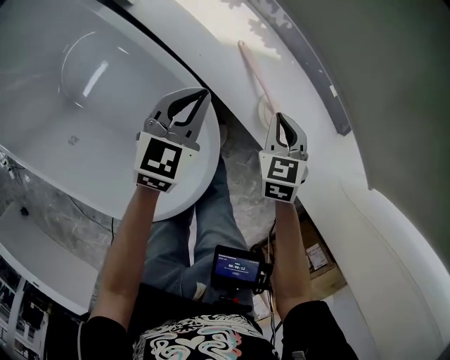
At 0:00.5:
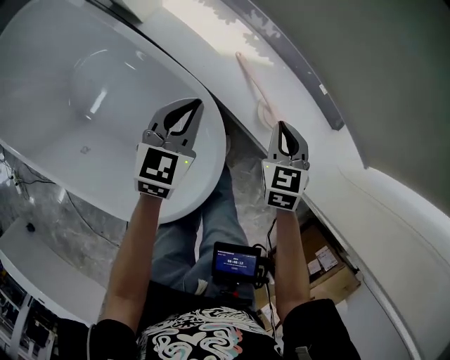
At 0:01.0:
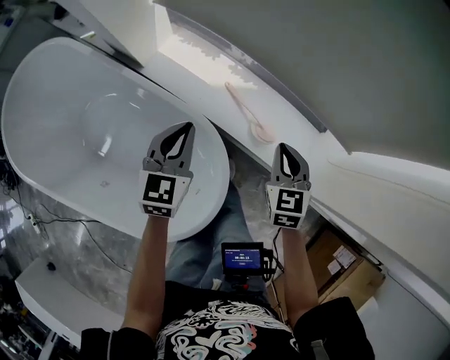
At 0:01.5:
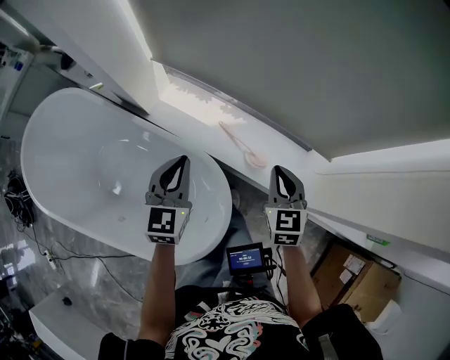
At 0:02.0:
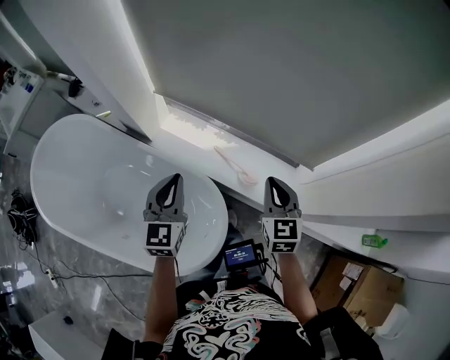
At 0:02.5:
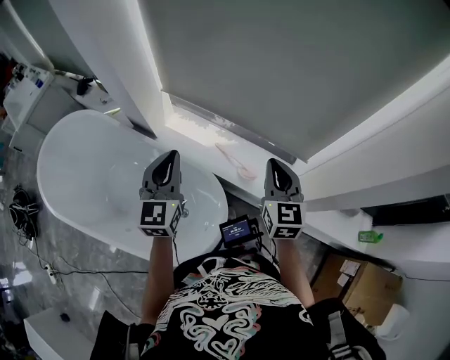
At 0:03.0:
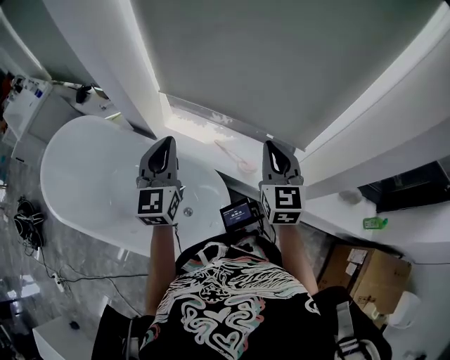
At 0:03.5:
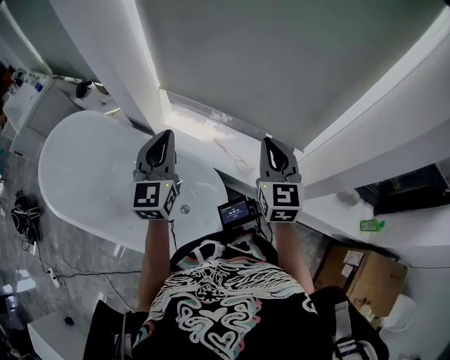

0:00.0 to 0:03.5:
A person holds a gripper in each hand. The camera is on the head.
0:00.0 to 0:02.0: Both grippers move upward, some 35 cm. The left gripper swivels roughly 20 degrees. The right gripper swivels approximately 30 degrees.
0:02.0 to 0:03.5: Both grippers move upward, approximately 10 cm.

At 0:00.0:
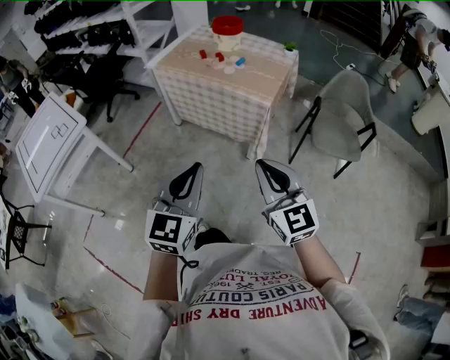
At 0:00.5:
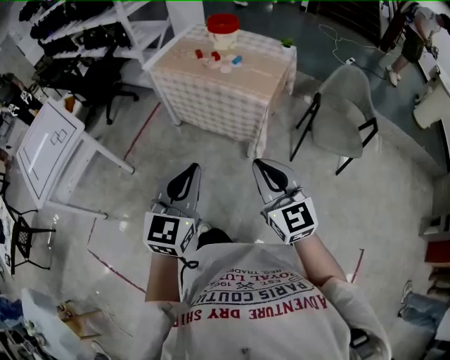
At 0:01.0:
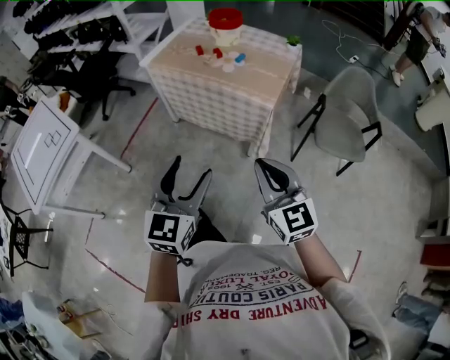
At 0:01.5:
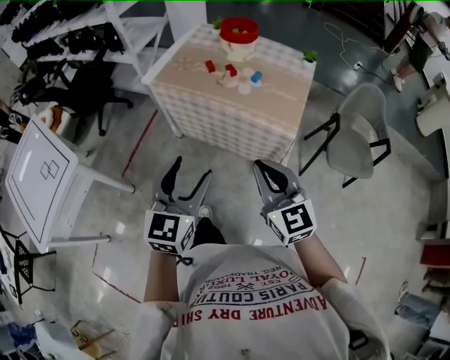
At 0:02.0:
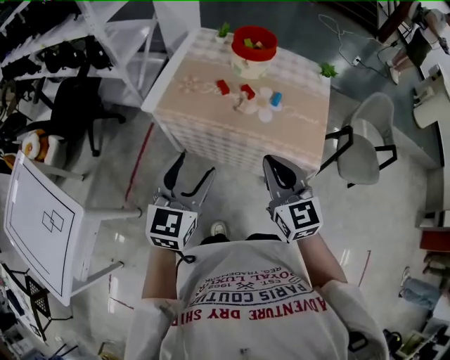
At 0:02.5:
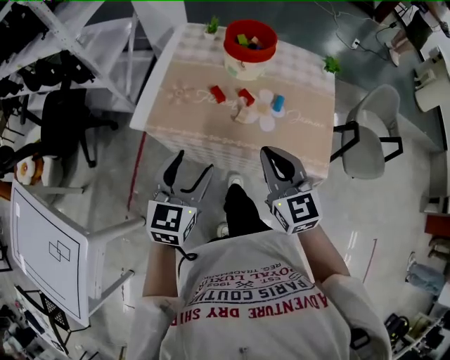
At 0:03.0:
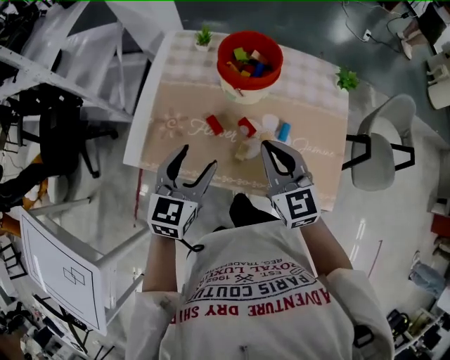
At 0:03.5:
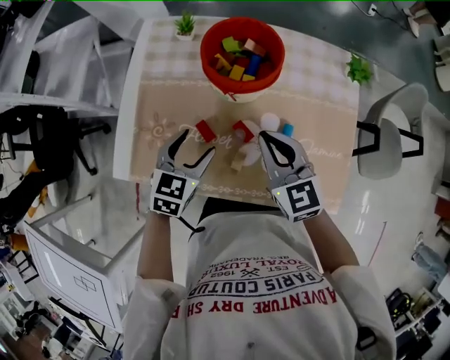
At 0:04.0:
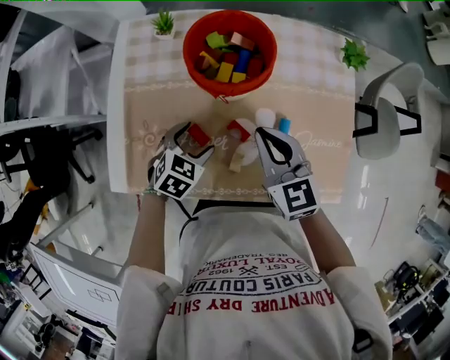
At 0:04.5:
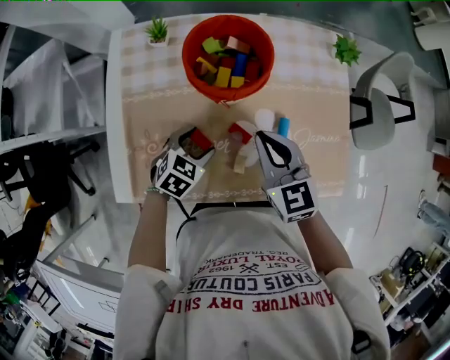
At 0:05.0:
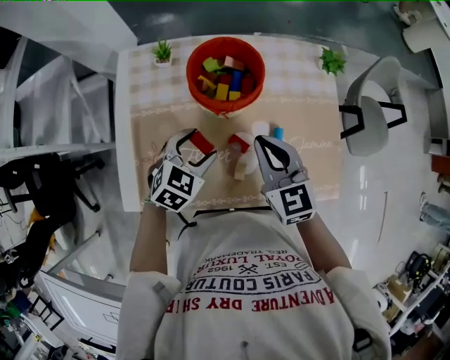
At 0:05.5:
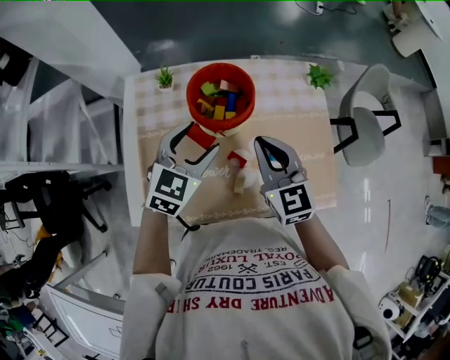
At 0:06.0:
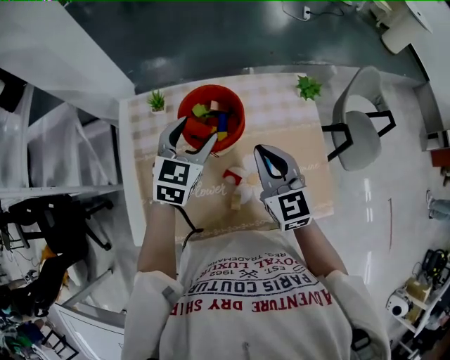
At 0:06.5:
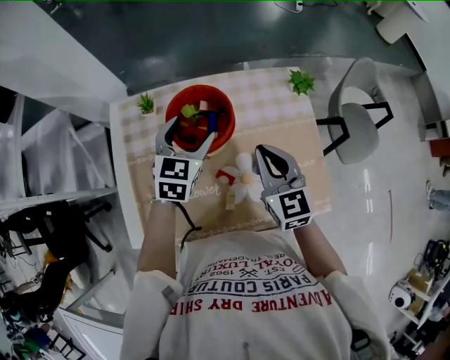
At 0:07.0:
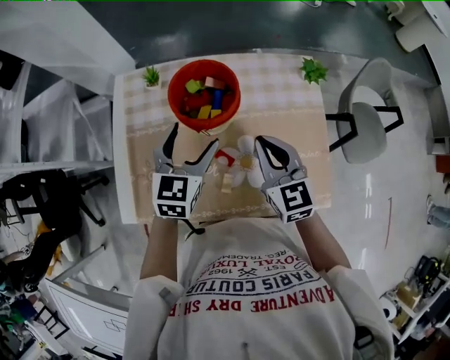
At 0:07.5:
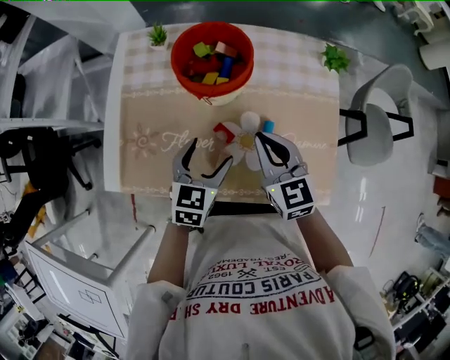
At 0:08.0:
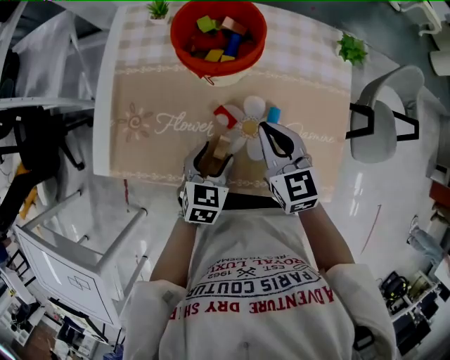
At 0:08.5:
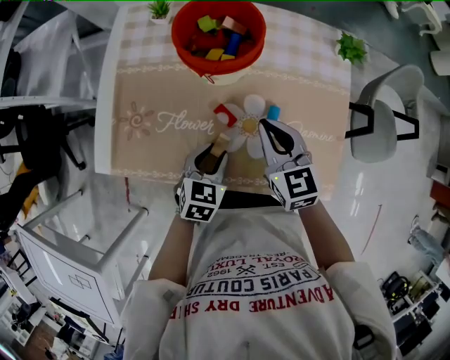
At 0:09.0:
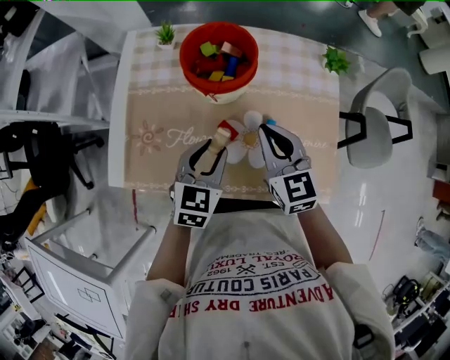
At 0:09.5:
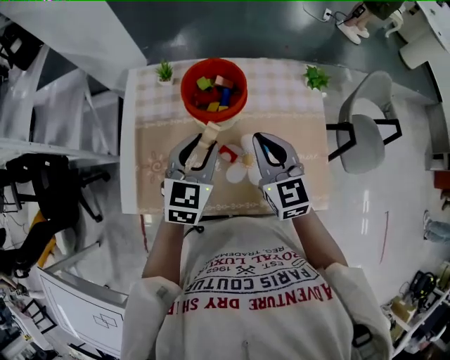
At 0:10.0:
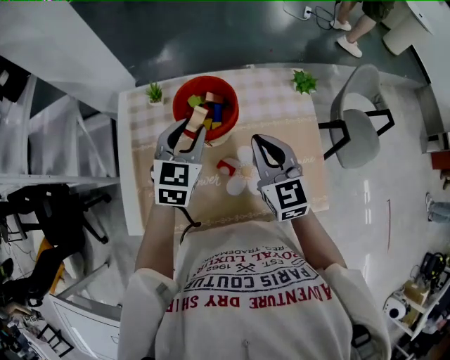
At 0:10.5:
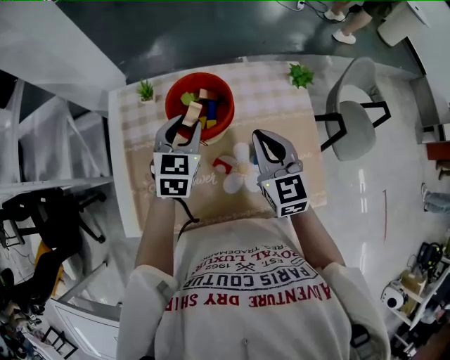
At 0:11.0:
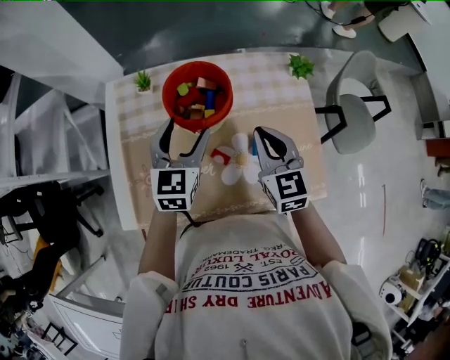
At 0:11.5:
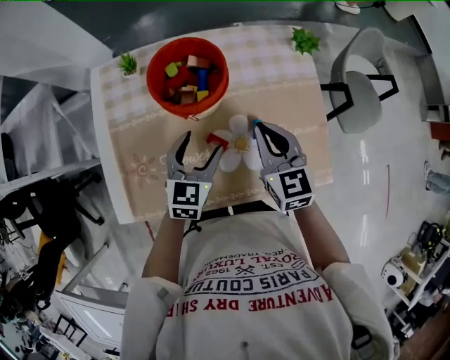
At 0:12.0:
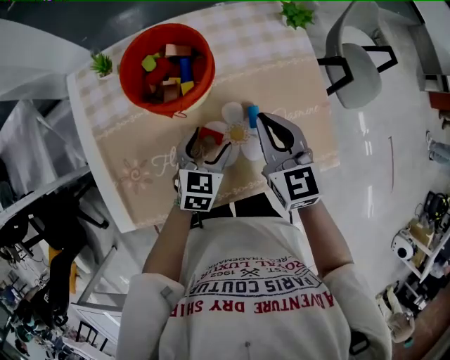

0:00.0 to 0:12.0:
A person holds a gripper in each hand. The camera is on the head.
0:00.0 to 0:02.0: The pair of grippers is taken forward, about 50 cm. The left gripper opens up.
0:02.0 to 0:04.0: The right gripper travels forward by roughly 35 cm, while the left gripper goes roughly 50 cm forward and downward, and points its fingers about 40 degrees further downward.
0:04.0 to 0:06.0: The left gripper is displaced upward and forward by approximately 25 cm, and turns by some 30 degrees, while the right gripper travels upward and forward by some 10 cm.
0:06.0 to 0:08.0: The left gripper travels backward and downward by approximately 30 cm, and turns by some 30 degrees; the right gripper shifts some 15 cm downward and backward.
0:08.0 to 0:10.0: The right gripper travels upward and forward by roughly 15 cm, while the left gripper heads upward and forward, covering approximately 30 cm, and changes its angle by some 30 degrees.
0:10.0 to 0:12.0: The left gripper travels downward, backward and to the right by about 25 cm, swivels roughly 20 degrees, and opens up, while the right gripper moves downward, approximately 10 cm.

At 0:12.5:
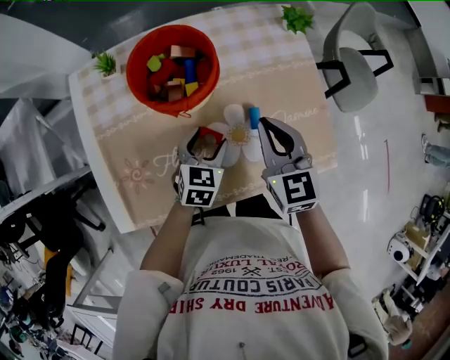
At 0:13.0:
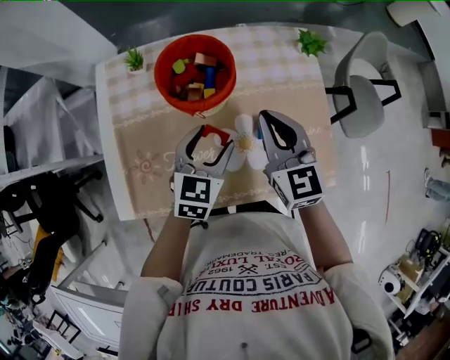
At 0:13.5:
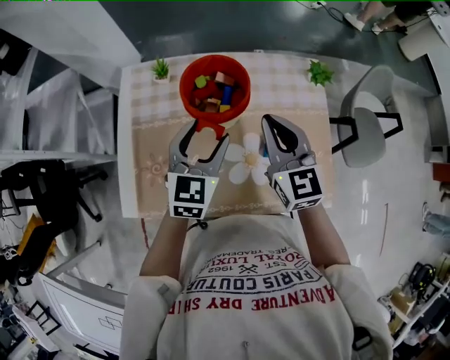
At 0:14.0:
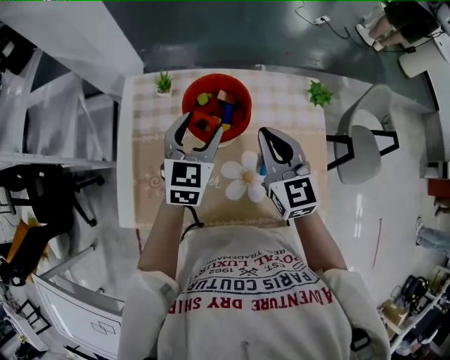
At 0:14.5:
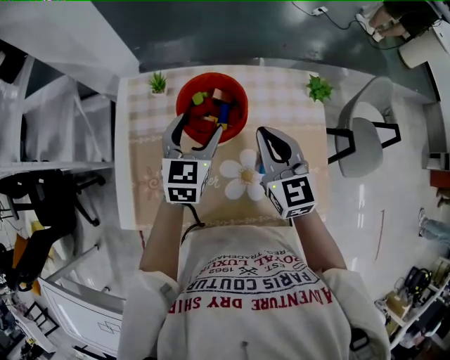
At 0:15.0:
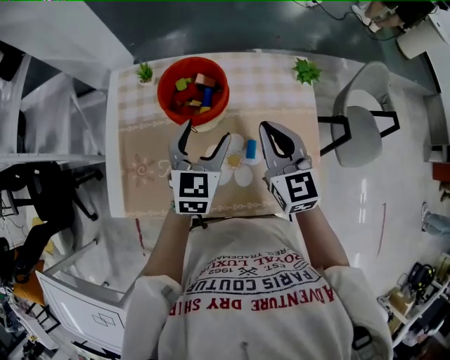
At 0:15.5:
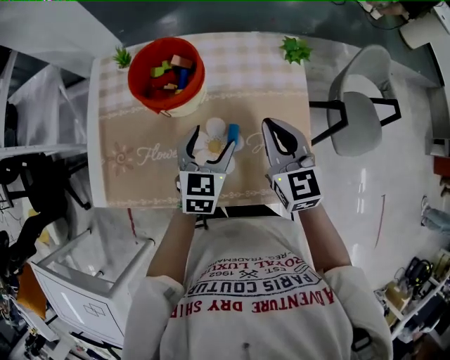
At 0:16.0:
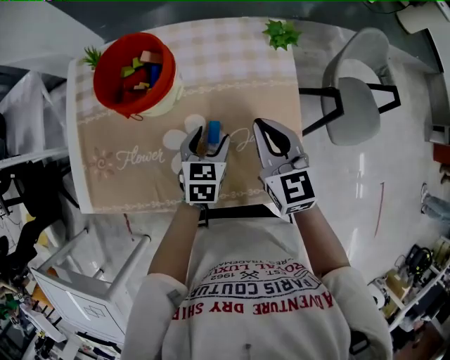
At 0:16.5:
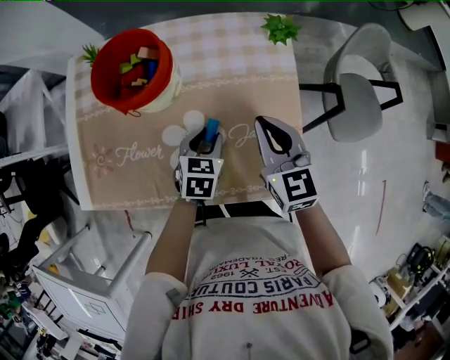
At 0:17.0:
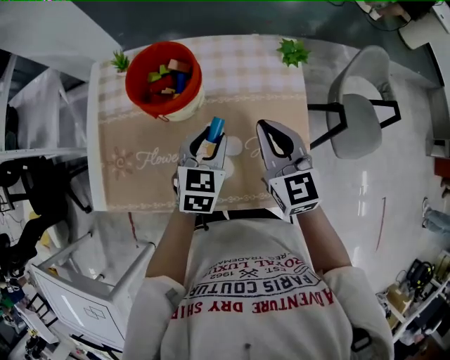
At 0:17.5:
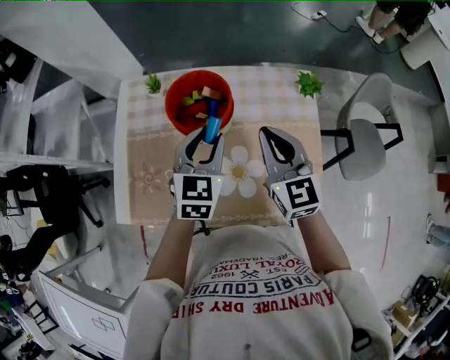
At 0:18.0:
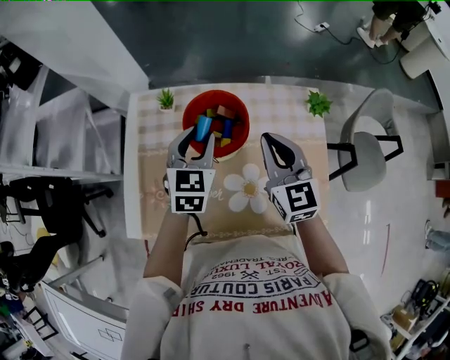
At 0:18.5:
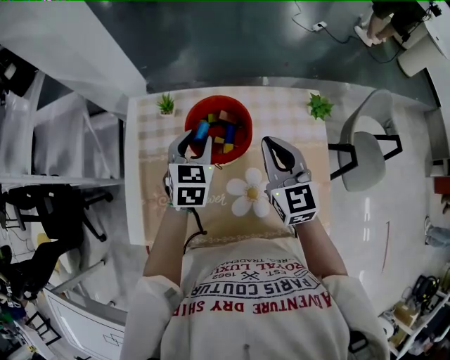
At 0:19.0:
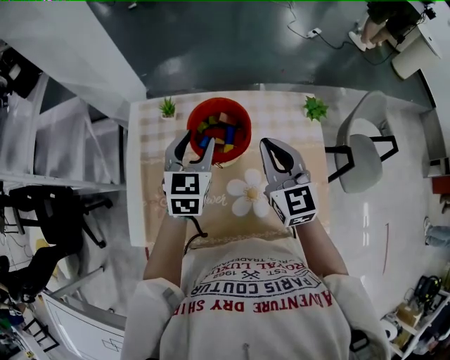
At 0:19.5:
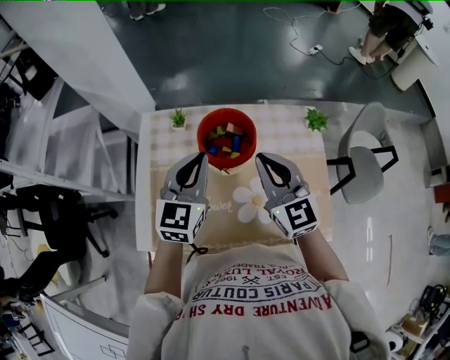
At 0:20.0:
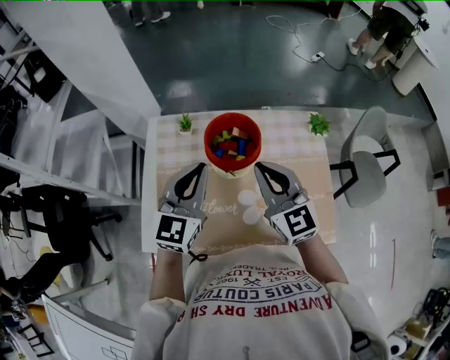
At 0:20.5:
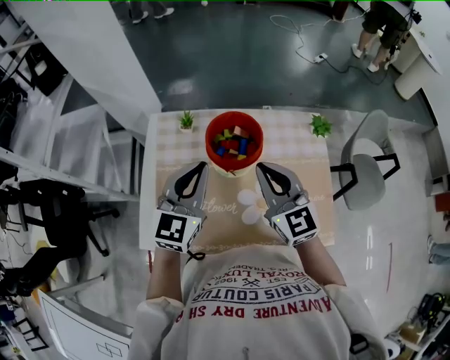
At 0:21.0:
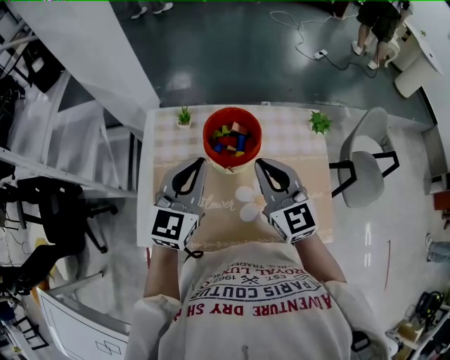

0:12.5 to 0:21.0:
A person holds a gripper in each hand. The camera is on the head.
0:12.5 to 0:14.5: The right gripper shifts approximately 10 cm forward and upward. The left gripper travels upward, forward and to the left by roughly 25 cm, and swivels about 30 degrees.
0:14.5 to 0:16.5: The left gripper goes some 30 cm downward, to the right and backward, swivels roughly 30 degrees, and closes up; the right gripper travels to the right, downward and backward by approximately 20 cm.
0:16.5 to 0:19.0: The left gripper goes up and down, about 20 cm each way, reversing 2 times, and turns by approximately 30 degrees, while the right gripper travels to the left, upward and forward by some 20 cm.
0:19.0 to 0:21.0: The right gripper goes approximately 5 cm to the left. The left gripper moves backward and upward, roughly 10 cm, and closes its fingers.

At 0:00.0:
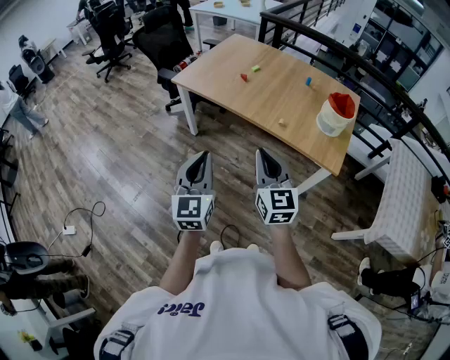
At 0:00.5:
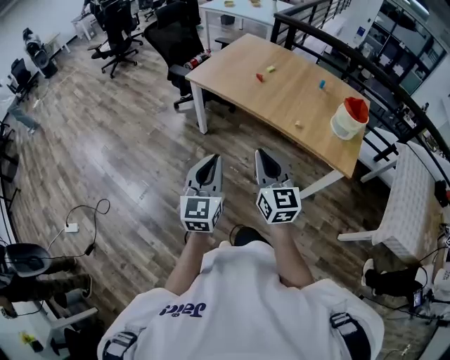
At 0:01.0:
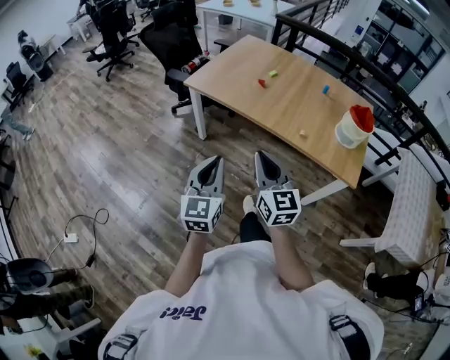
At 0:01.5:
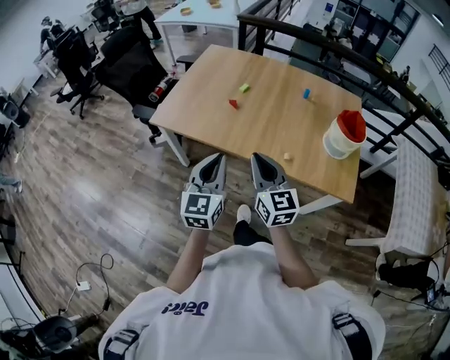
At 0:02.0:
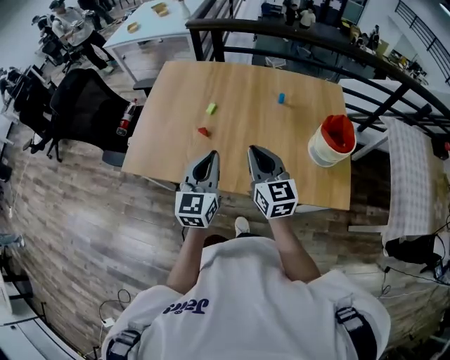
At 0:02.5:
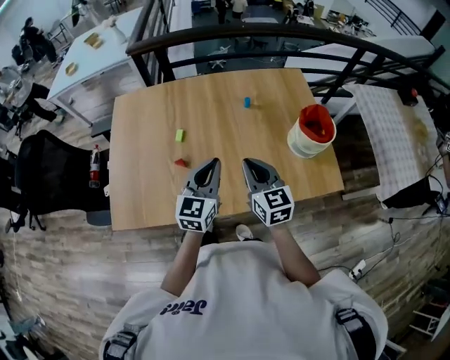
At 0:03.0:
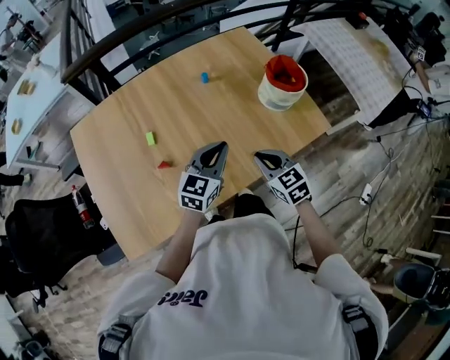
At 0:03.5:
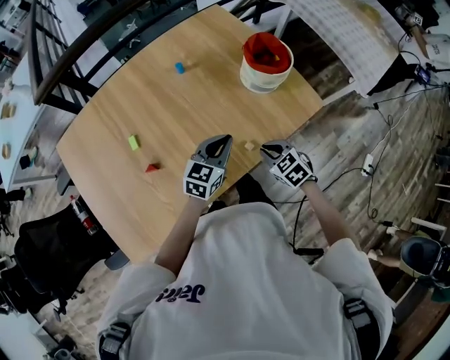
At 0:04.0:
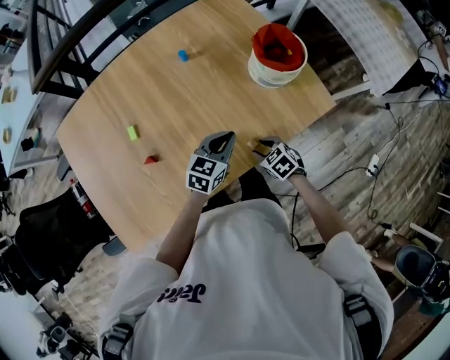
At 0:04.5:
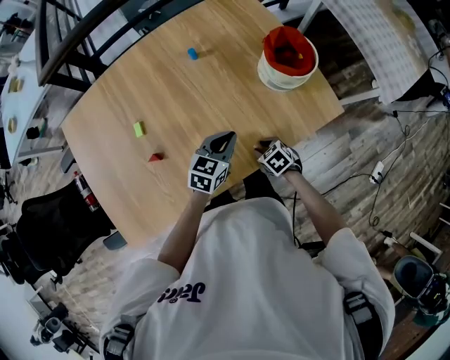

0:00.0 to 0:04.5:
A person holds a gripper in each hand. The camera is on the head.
0:00.0 to 0:02.0: The two grippers travel together, forward, some 50 cm. The left gripper changes its angle by roughly 30 degrees.
0:02.0 to 0:04.5: The left gripper is displaced downward by roughly 20 cm, and rotates about 60 degrees. Meanwhile the right gripper moves downward, approximately 35 cm, angles its fingers downward, by about 60 degrees, and opens its fingers.
